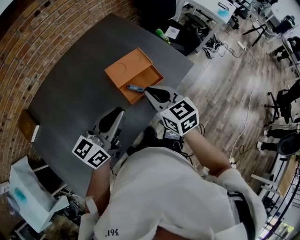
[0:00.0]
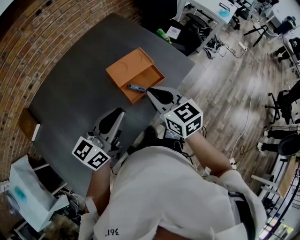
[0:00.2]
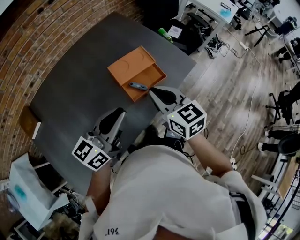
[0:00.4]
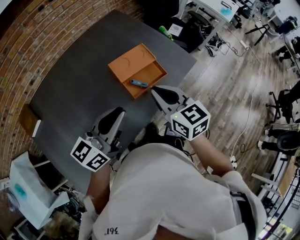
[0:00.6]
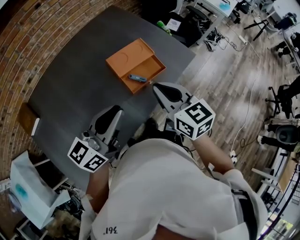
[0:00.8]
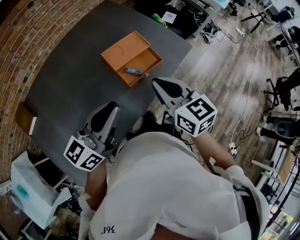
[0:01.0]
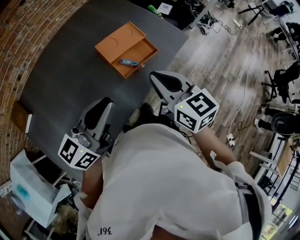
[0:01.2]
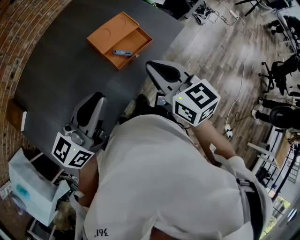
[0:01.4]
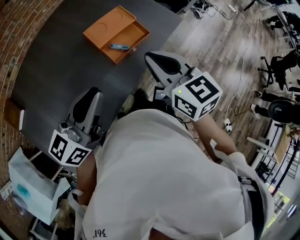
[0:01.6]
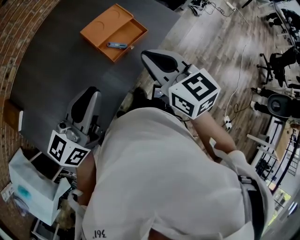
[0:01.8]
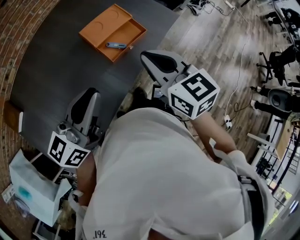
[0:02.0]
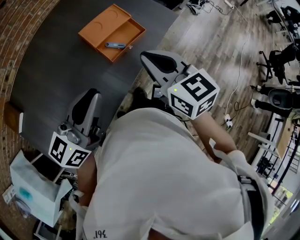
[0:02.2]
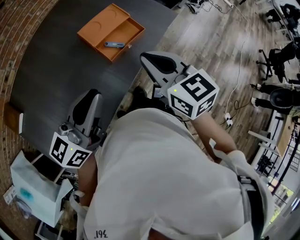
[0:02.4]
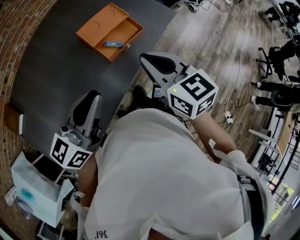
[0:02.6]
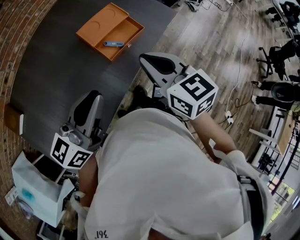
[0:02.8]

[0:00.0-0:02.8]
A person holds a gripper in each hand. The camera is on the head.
0.0 to 1.4 s: The grippers both shift backward by some 5 cm.
1.4 to 2.8 s: There are only small adjustments of the grippers.

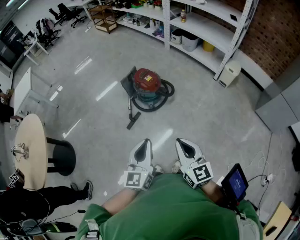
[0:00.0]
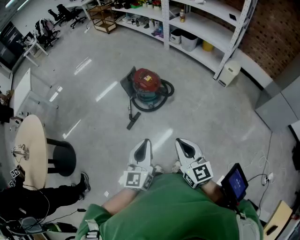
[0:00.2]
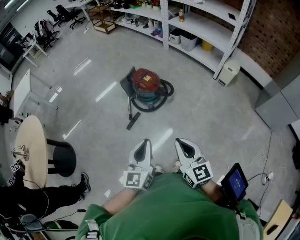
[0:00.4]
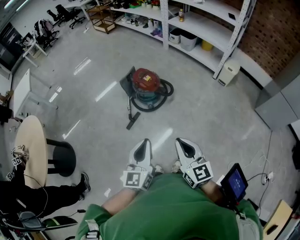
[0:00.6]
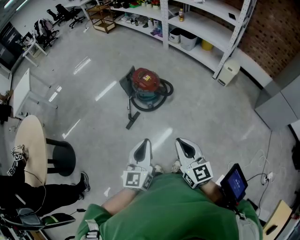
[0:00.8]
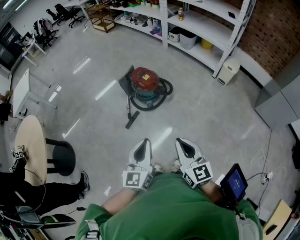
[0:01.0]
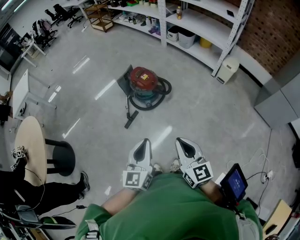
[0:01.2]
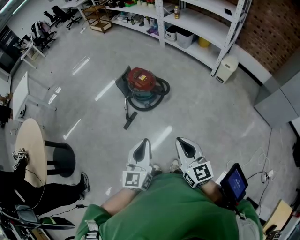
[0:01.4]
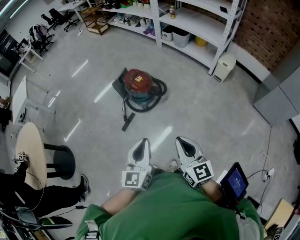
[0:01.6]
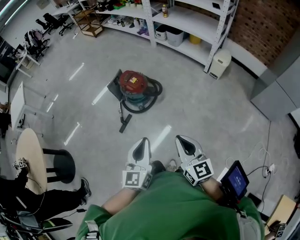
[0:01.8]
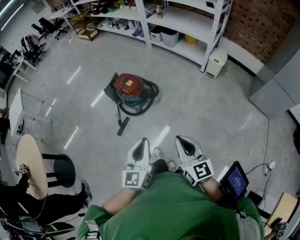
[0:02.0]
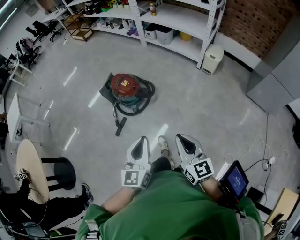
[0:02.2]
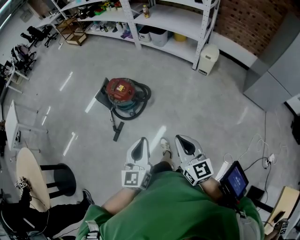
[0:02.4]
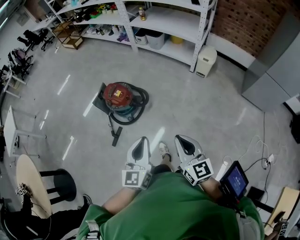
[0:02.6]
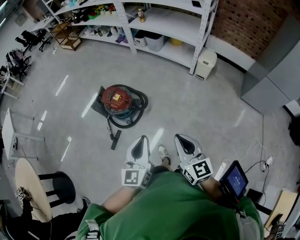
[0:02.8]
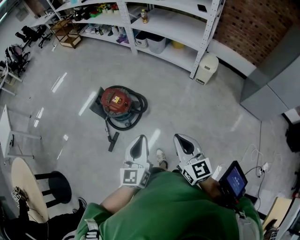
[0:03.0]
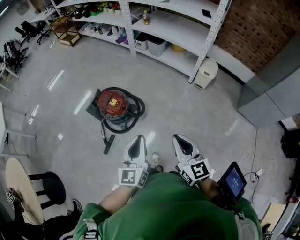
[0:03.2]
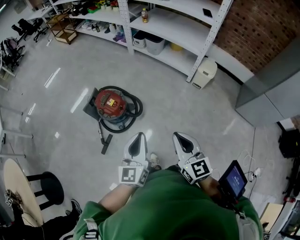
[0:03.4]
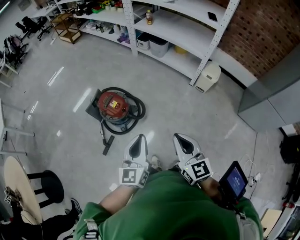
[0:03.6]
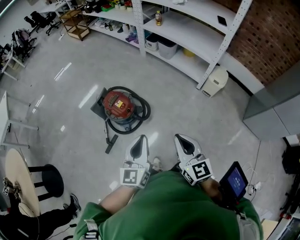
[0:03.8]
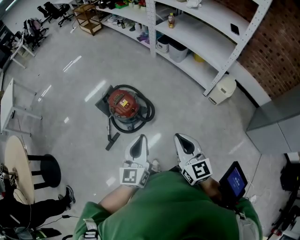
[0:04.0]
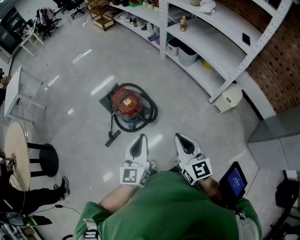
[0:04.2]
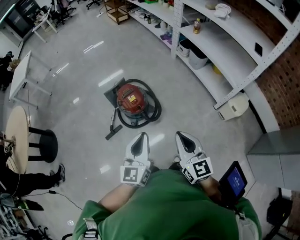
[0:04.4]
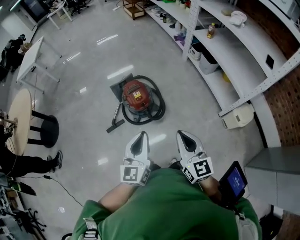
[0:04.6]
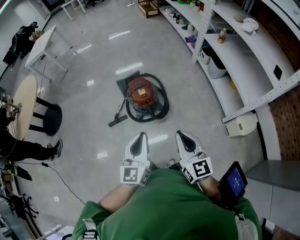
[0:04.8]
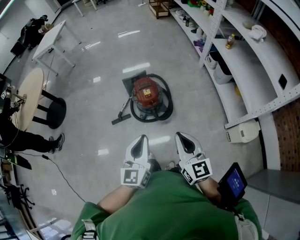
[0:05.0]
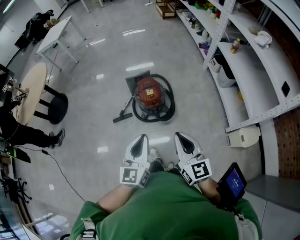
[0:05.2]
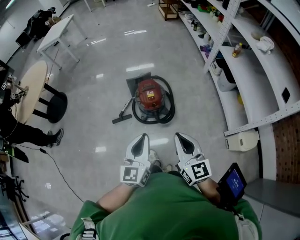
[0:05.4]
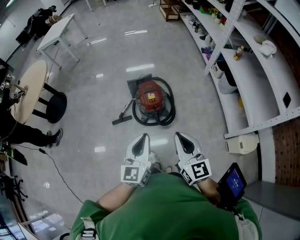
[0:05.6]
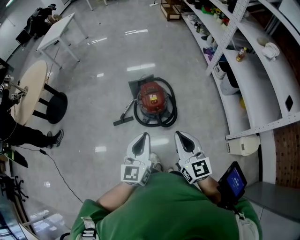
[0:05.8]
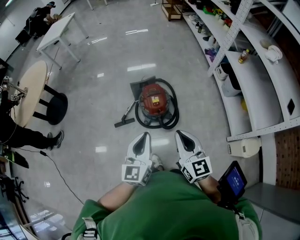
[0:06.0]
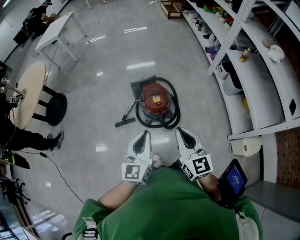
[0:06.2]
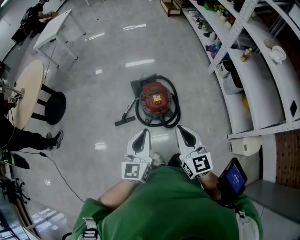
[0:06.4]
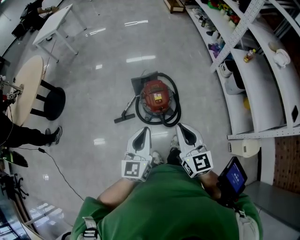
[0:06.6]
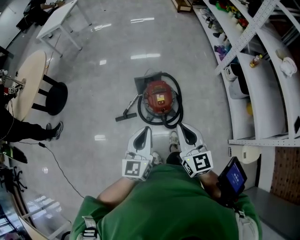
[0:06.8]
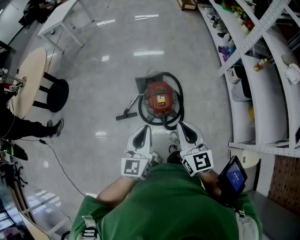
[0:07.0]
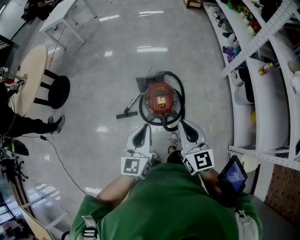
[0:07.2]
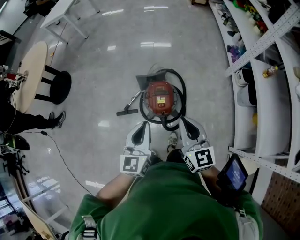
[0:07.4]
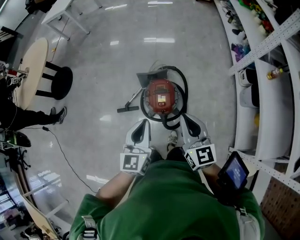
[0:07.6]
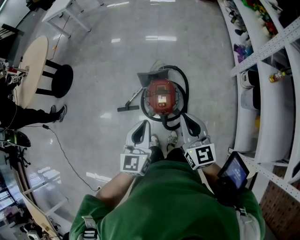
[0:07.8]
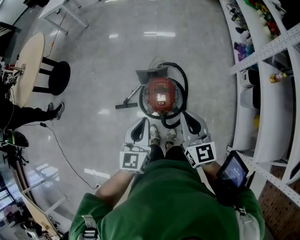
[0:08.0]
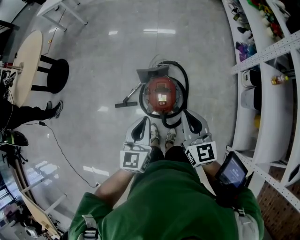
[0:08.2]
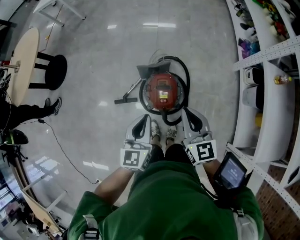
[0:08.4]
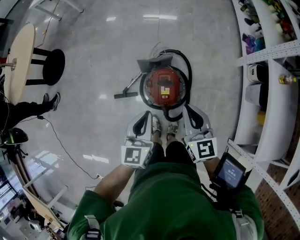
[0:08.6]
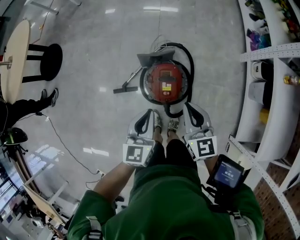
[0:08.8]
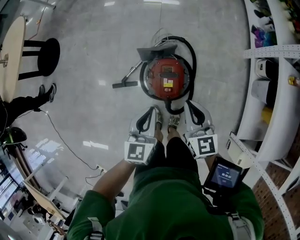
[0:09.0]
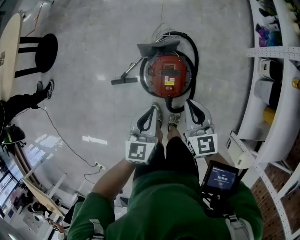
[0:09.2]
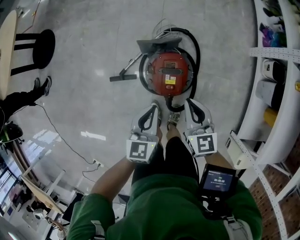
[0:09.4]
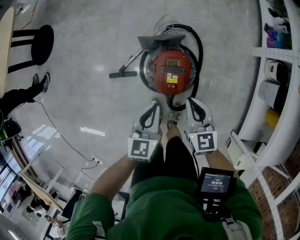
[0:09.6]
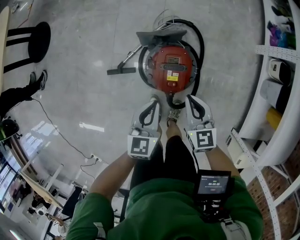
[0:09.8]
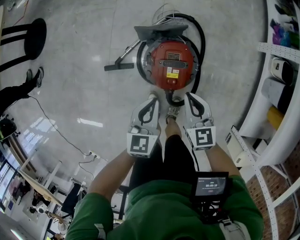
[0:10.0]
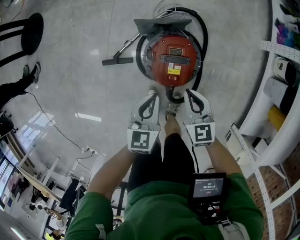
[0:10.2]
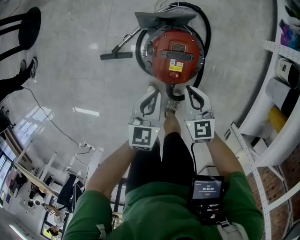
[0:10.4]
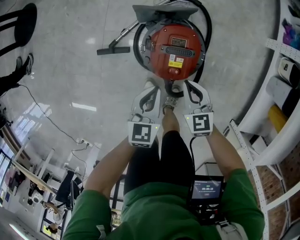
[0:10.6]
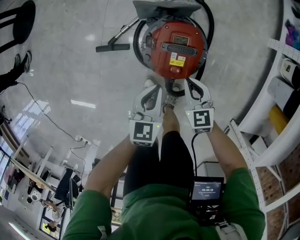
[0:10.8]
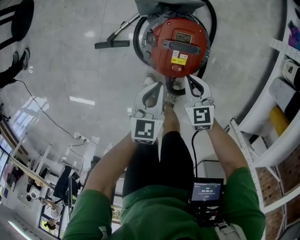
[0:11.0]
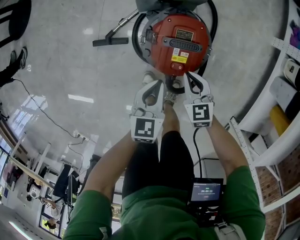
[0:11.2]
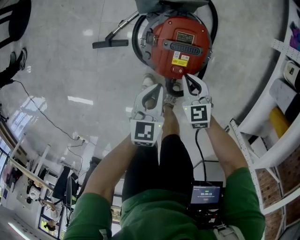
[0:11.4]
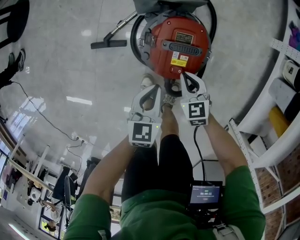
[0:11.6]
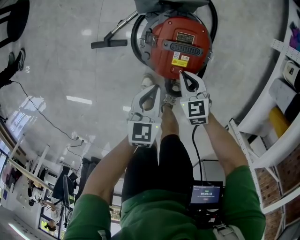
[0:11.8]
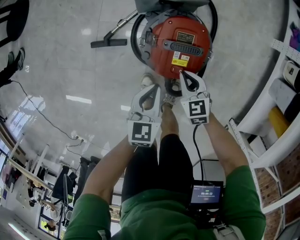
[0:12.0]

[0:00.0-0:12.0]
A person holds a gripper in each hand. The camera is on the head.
0.0 to 1.6 s: Both grippers travel together to the right, some 5 cm.
1.6 to 3.0 s: The two grippers go about 20 cm forward and to the right.
3.0 to 4.4 s: The grippers both shift forward by roughly 20 cm. The right gripper rotates roughly 20 degrees; the left gripper turns by approximately 30 degrees.
4.4 to 6.0 s: The right gripper heads forward, covering approximately 10 cm, and changes its angle by about 20 degrees, while the left gripper heads forward, covering some 5 cm, and turns by roughly 20 degrees.
6.0 to 7.6 s: Both grippers move forward, roughly 25 cm.
7.6 to 9.0 s: Both grippers travel together downward and forward, approximately 20 cm.
9.0 to 10.4 s: The two grippers go roughly 25 cm downward.
10.4 to 12.0 s: The right gripper is displaced downward by roughly 15 cm. The left gripper travels downward by about 10 cm.

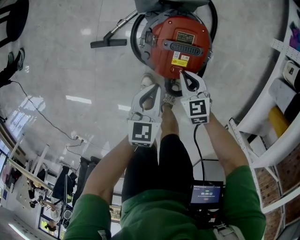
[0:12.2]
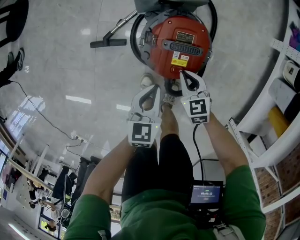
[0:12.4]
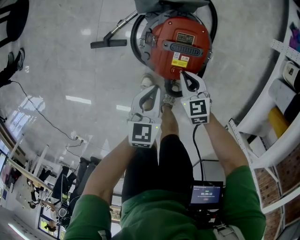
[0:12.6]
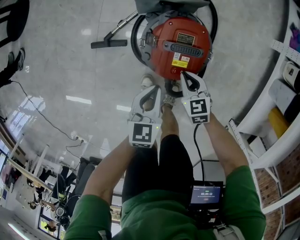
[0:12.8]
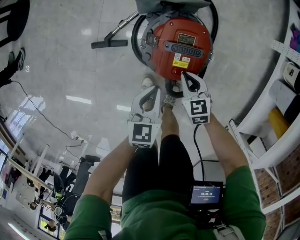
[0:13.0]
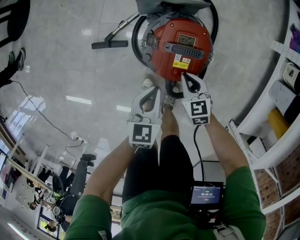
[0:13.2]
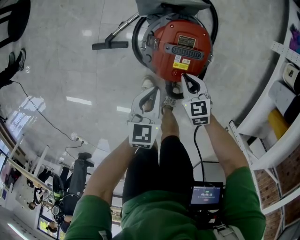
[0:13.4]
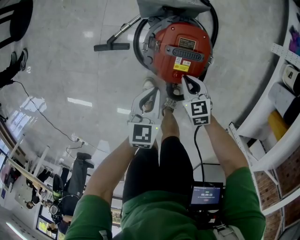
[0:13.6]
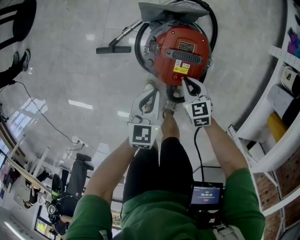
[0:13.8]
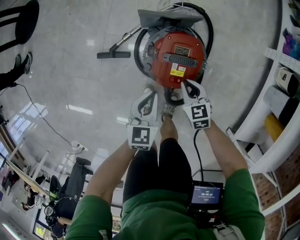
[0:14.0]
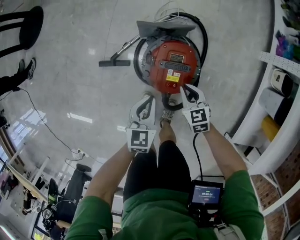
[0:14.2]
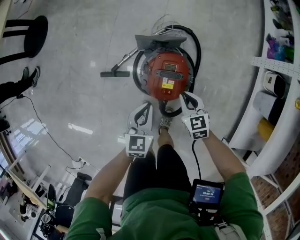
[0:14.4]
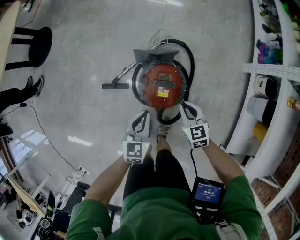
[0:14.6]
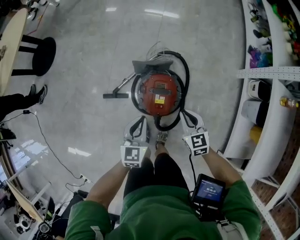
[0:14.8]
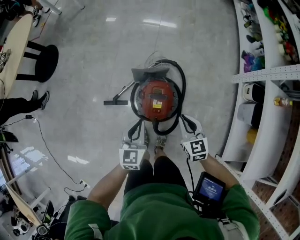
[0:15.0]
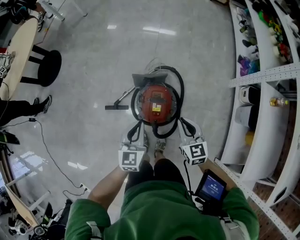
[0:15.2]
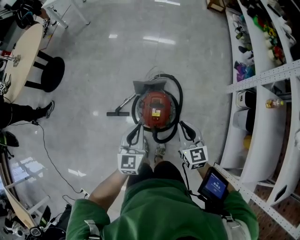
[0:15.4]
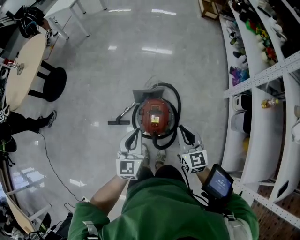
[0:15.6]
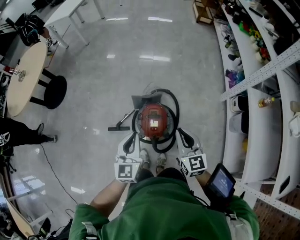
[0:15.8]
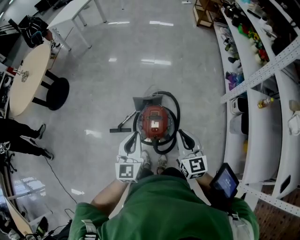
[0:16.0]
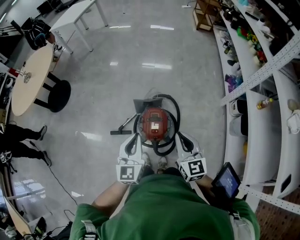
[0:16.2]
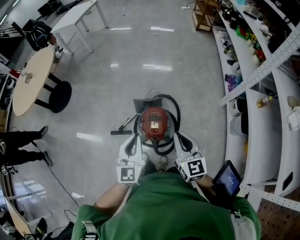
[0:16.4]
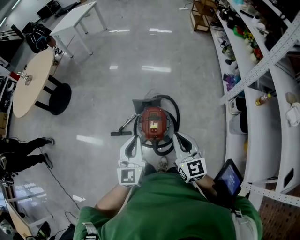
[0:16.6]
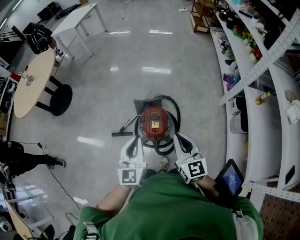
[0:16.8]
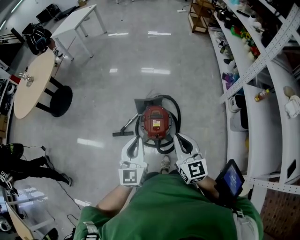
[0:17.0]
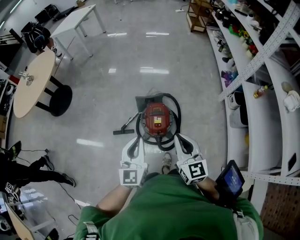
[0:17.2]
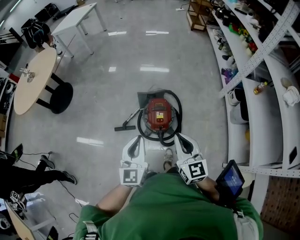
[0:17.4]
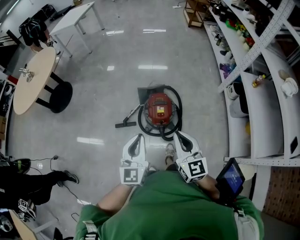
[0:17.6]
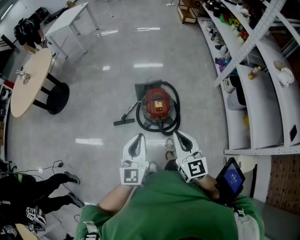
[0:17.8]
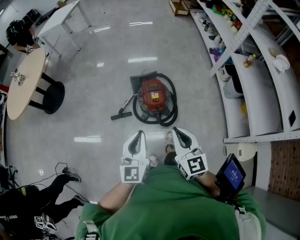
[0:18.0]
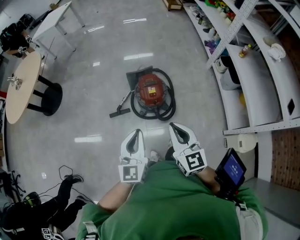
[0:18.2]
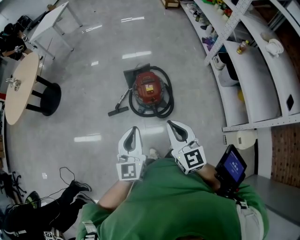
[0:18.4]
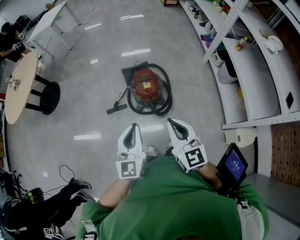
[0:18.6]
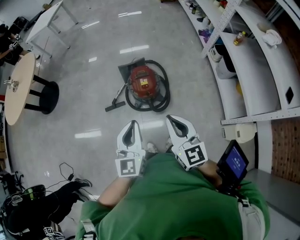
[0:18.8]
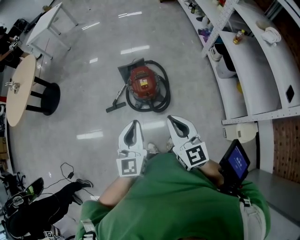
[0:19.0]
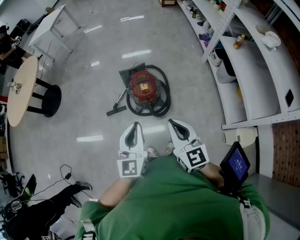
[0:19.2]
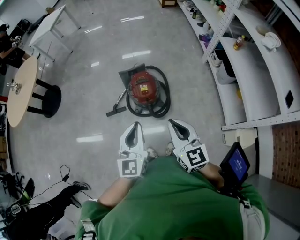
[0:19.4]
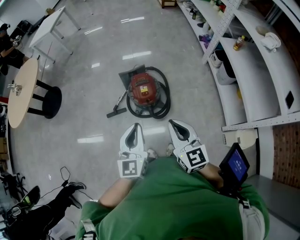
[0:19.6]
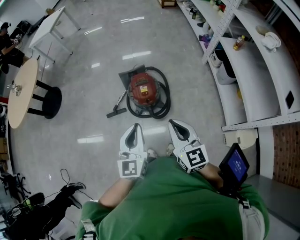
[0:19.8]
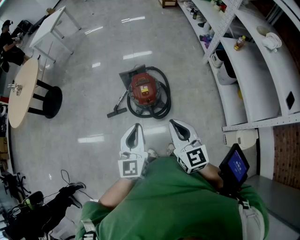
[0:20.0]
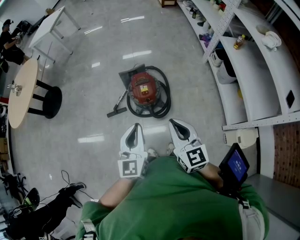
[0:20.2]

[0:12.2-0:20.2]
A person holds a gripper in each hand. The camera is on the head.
12.2 to 13.8 s: The grippers make only small movements.
13.8 to 15.4 s: The two grippers go approximately 40 cm upward. The left gripper swivels some 30 degrees; the right gripper swivels roughly 30 degrees.
15.4 to 17.0 s: Both grippers travel together upward and backward, some 20 cm.
17.0 to 18.6 s: The two grippers go roughly 20 cm backward.
18.6 to 20.2 s: Both grippers travel together to the right, about 5 cm.

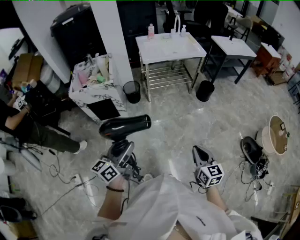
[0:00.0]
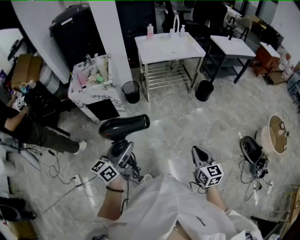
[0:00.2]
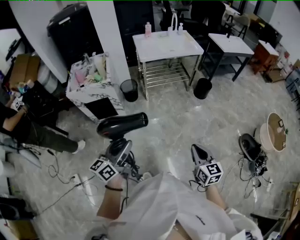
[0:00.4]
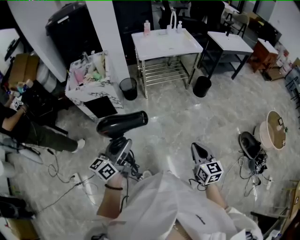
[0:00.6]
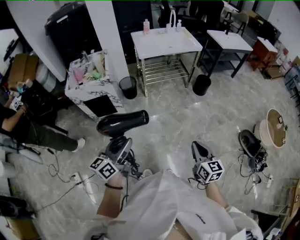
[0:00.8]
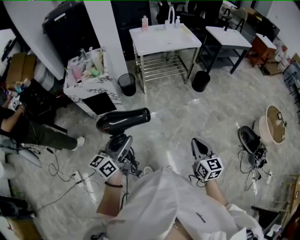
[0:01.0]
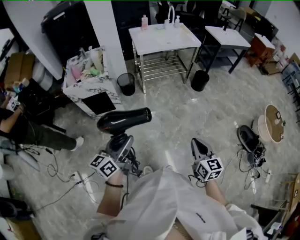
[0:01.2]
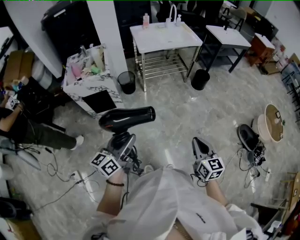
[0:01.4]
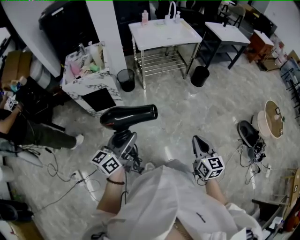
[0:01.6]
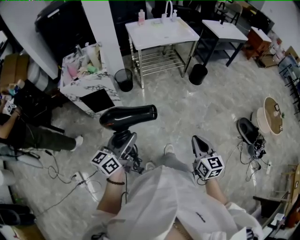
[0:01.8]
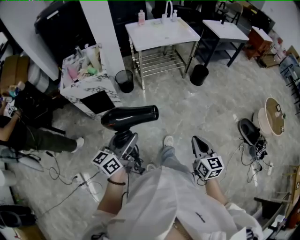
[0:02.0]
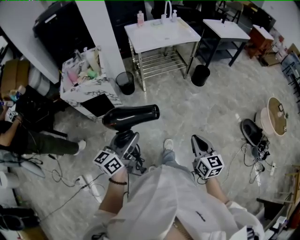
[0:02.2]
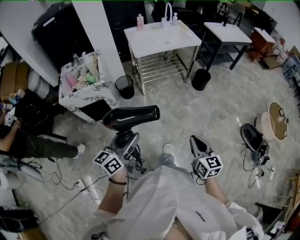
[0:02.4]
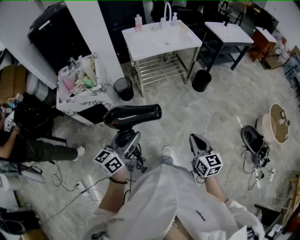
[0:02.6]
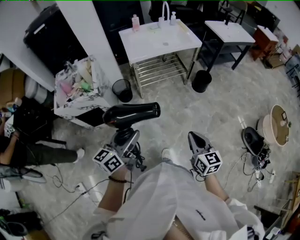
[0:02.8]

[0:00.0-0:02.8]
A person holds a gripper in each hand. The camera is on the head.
0.0 to 1.4 s: The grippers stay close to where they were, moving slightly.
1.4 to 2.8 s: Both grippers travel together forward, about 25 cm.
